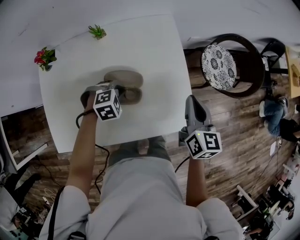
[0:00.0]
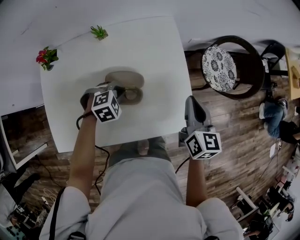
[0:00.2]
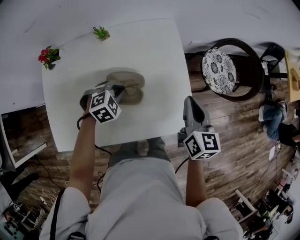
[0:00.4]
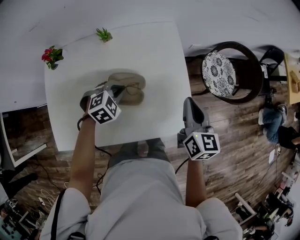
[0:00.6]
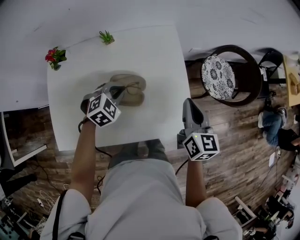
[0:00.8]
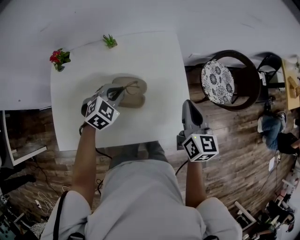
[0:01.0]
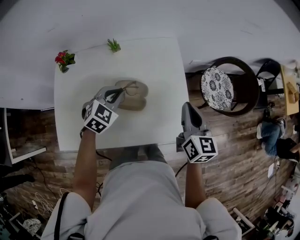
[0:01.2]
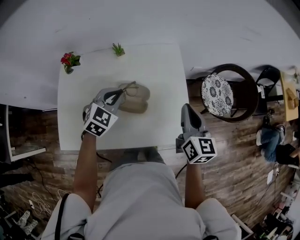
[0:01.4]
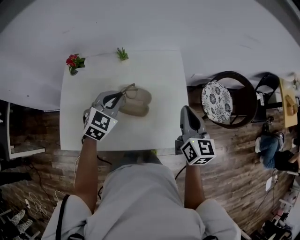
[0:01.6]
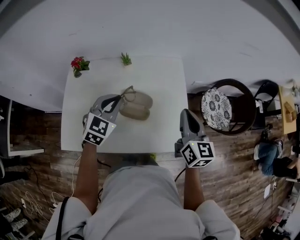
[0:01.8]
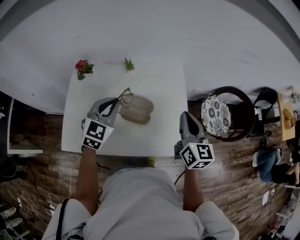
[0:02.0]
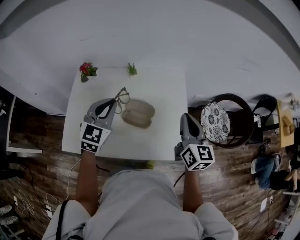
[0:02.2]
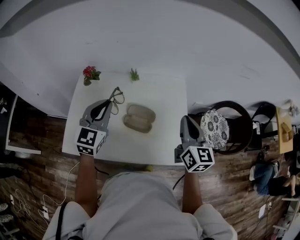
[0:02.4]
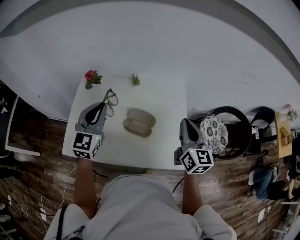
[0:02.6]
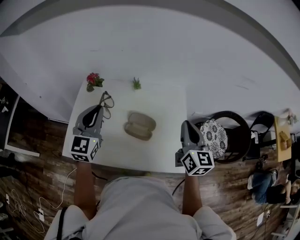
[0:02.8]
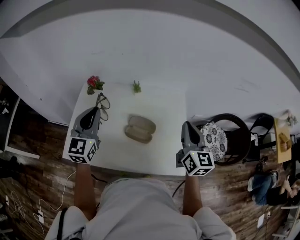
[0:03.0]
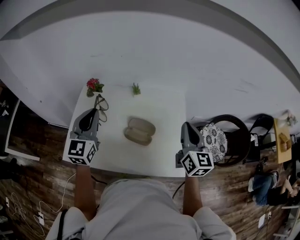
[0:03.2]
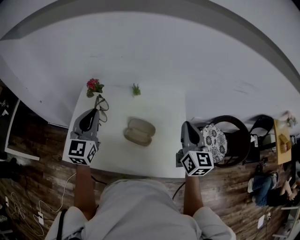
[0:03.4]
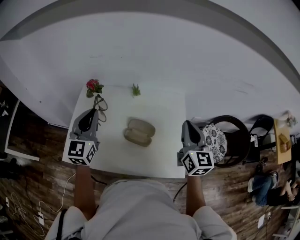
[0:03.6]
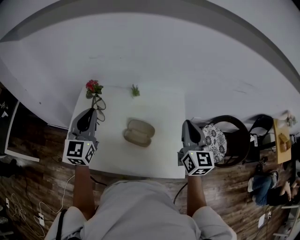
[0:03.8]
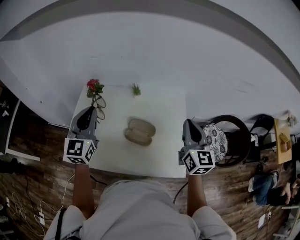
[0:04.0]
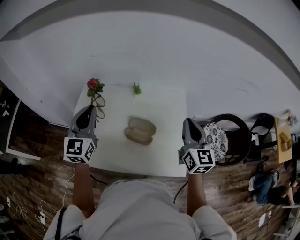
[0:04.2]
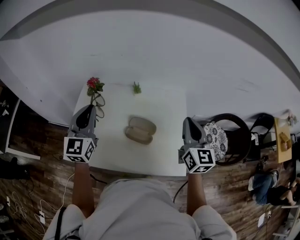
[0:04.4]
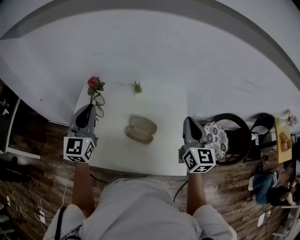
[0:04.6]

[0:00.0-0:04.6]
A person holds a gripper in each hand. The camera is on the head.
0:00.0 to 0:01.6: The right gripper heads upward, covering approximately 10 cm, while the left gripper moves upward, about 20 cm, and points its fingers roughly 40 degrees further upward.
0:01.6 to 0:03.0: The left gripper travels upward and to the left by about 20 cm, and turns by about 40 degrees, while the right gripper moves upward, some 10 cm.
0:03.0 to 0:04.6: The grippers move only a little.

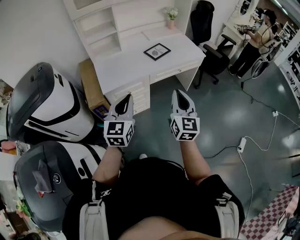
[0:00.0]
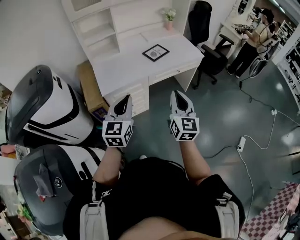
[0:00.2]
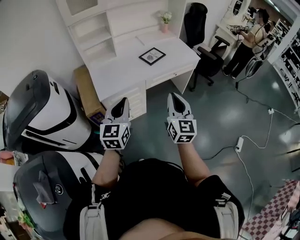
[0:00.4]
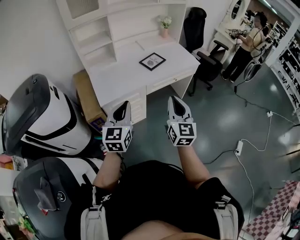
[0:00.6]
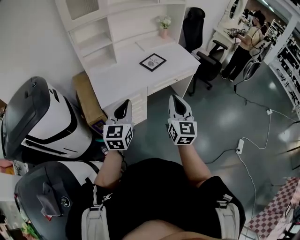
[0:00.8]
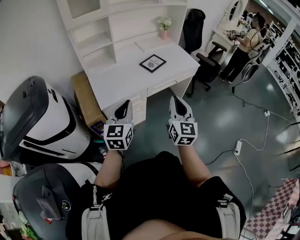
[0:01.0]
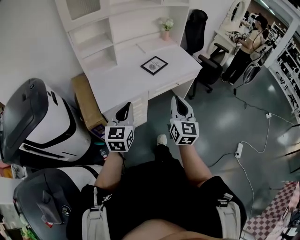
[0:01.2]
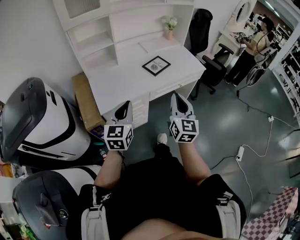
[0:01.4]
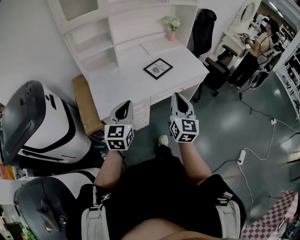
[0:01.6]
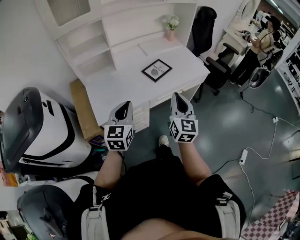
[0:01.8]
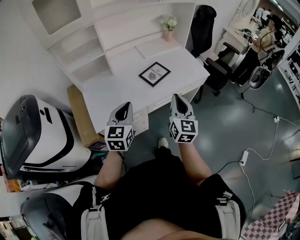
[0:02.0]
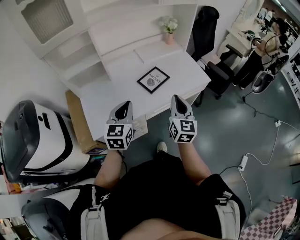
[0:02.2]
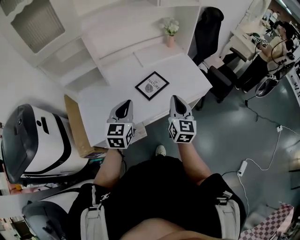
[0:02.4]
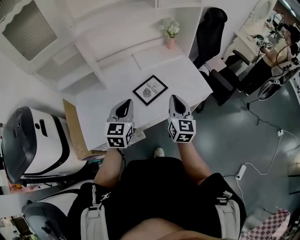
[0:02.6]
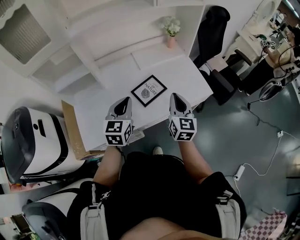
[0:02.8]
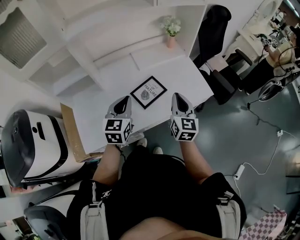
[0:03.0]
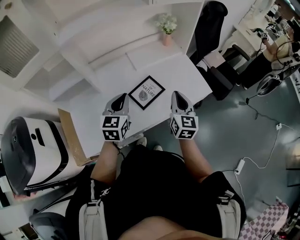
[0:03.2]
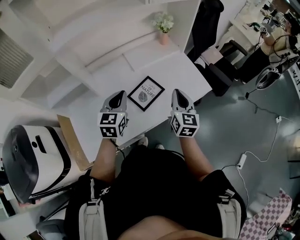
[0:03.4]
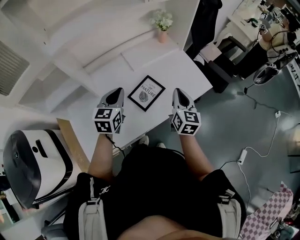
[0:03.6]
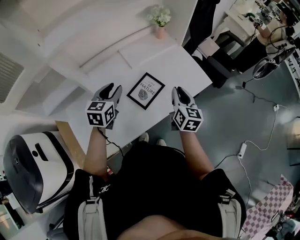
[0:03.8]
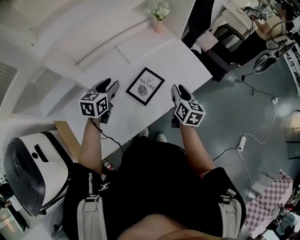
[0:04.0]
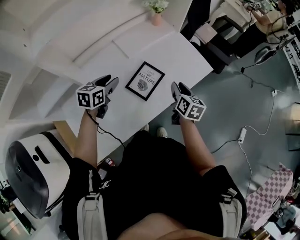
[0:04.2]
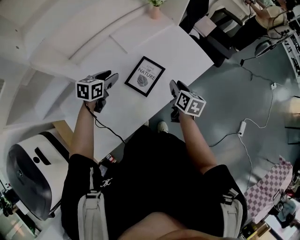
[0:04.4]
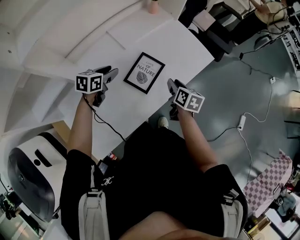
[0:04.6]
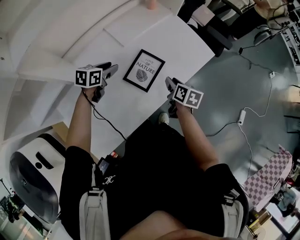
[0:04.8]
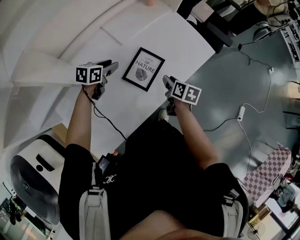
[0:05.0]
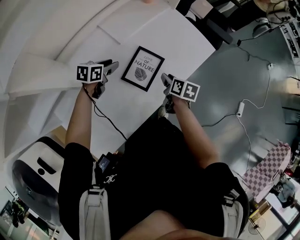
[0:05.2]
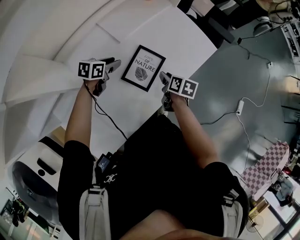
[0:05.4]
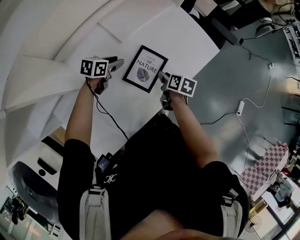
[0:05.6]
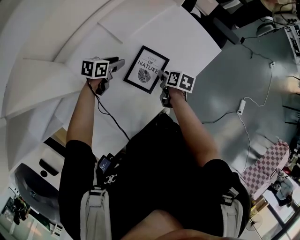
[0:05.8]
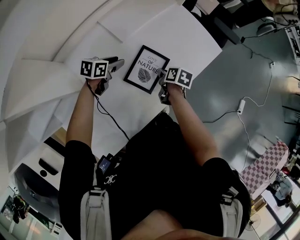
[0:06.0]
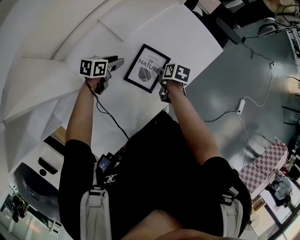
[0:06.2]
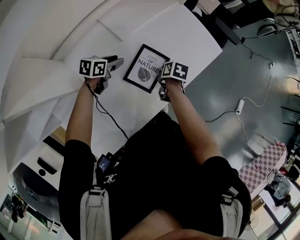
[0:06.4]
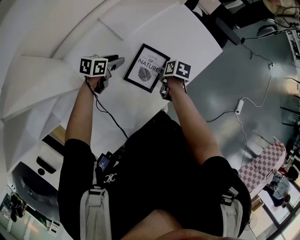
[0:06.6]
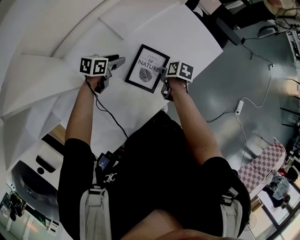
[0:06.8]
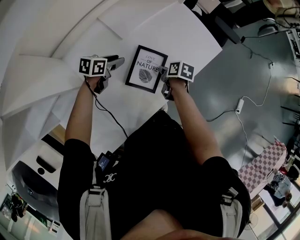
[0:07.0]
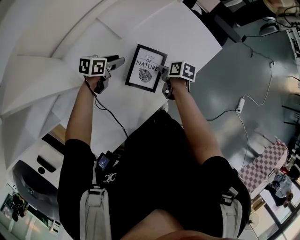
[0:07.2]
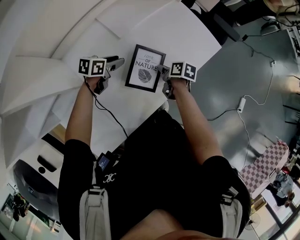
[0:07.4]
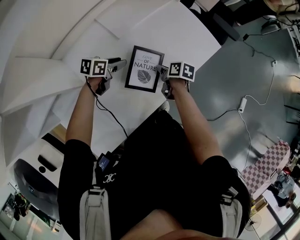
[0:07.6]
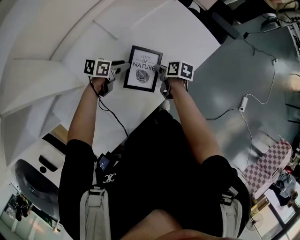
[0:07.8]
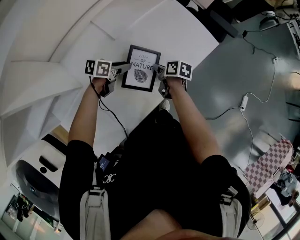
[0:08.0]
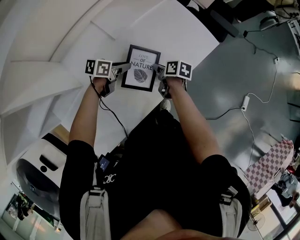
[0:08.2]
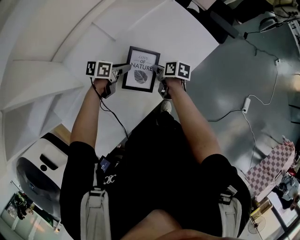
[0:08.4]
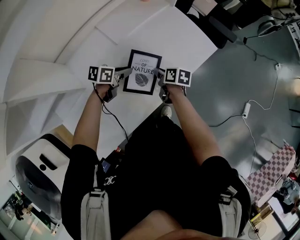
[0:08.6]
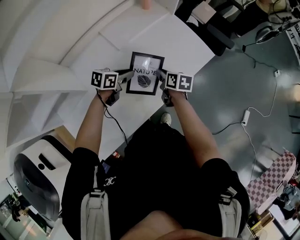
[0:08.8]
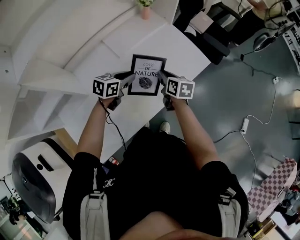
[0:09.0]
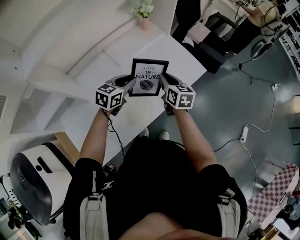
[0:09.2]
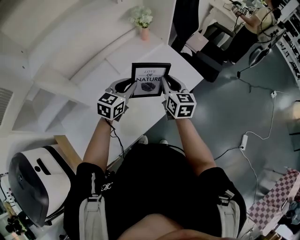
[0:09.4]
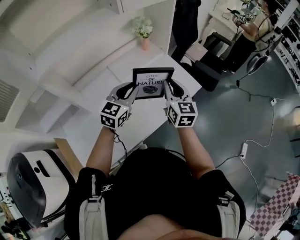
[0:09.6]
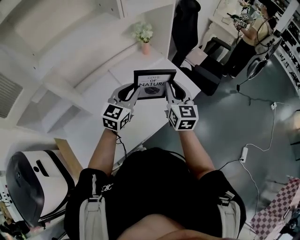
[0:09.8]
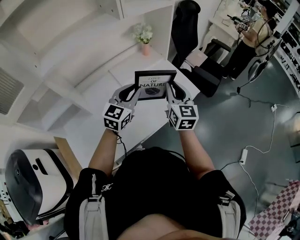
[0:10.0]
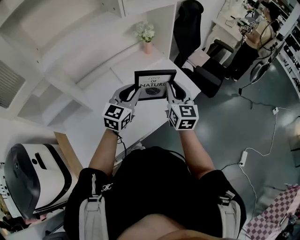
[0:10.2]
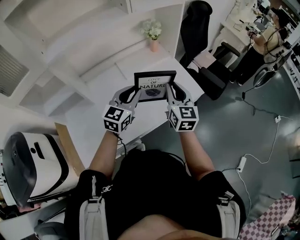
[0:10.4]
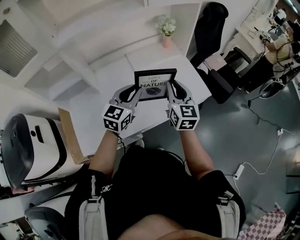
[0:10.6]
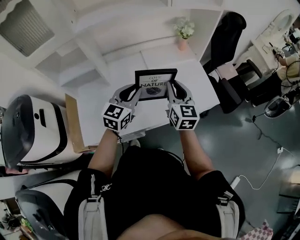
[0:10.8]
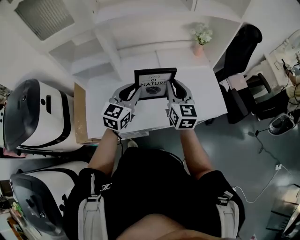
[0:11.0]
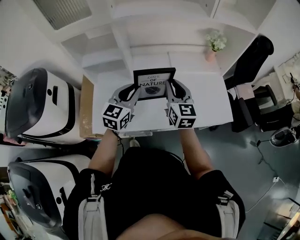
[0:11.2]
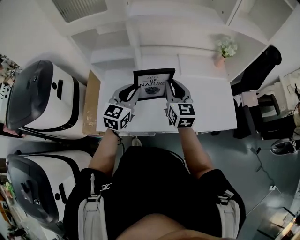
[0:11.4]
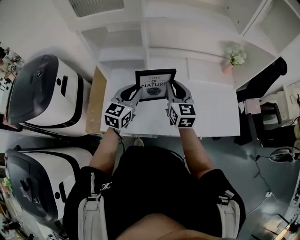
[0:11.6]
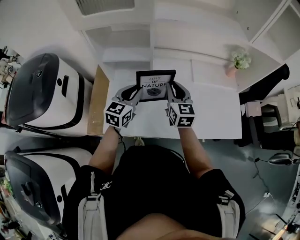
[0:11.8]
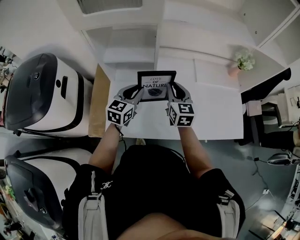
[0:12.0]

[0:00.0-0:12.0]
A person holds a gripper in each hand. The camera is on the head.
0:00.0 to 0:01.6: Both grippers travel together forward, approximately 15 cm.
0:01.6 to 0:03.0: The two grippers go about 35 cm forward.
0:03.0 to 0:04.4: The left gripper moves forward, downward and to the left, roughly 20 cm, rotates about 40 degrees, and opens its fingers. The right gripper shifts about 15 cm downward, rotates approximately 40 degrees, and opens its fingers.
0:04.4 to 0:06.0: The left gripper moves downward and forward, approximately 15 cm, and swivels roughly 20 degrees. Meanwhile the right gripper travels downward and to the left by approximately 15 cm, and changes its angle by roughly 30 degrees.
0:06.0 to 0:07.6: The grippers stay close to where they were, moving slightly.
0:07.6 to 0:09.0: The right gripper heads upward, covering about 10 cm, and changes its angle by roughly 30 degrees. The left gripper moves upward and to the right, approximately 10 cm, and closes its fingers.
0:09.0 to 0:10.4: The left gripper shifts roughly 20 cm upward and to the right, and swivels roughly 40 degrees. Meanwhile the right gripper shifts about 20 cm upward, and rotates some 40 degrees.
0:10.4 to 0:12.0: The left gripper ends up approximately 35 cm from where it was, and rotates some 30 degrees. Meanwhile the right gripper changes place by some 40 cm, and rotates roughly 30 degrees.

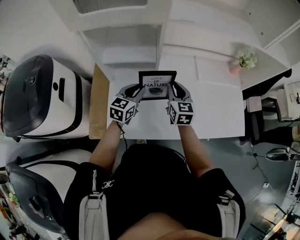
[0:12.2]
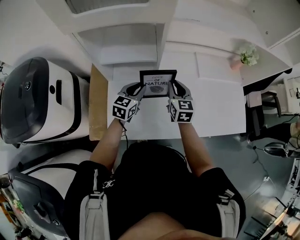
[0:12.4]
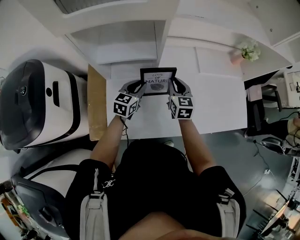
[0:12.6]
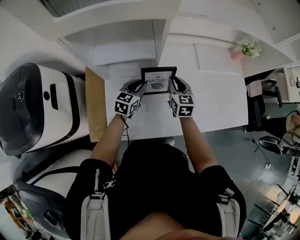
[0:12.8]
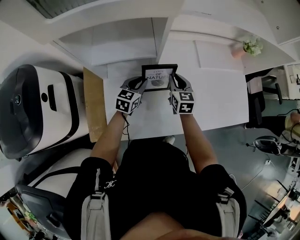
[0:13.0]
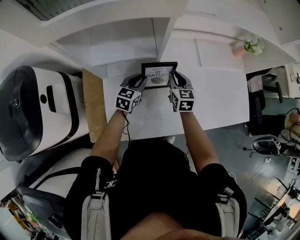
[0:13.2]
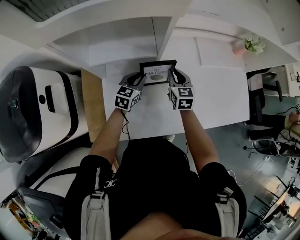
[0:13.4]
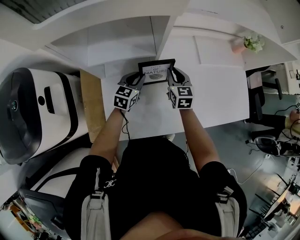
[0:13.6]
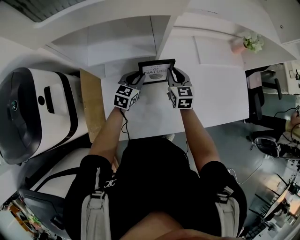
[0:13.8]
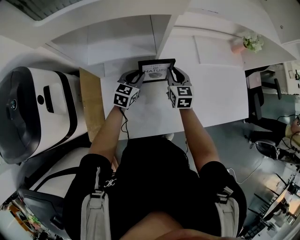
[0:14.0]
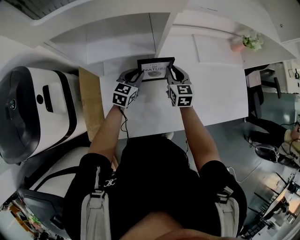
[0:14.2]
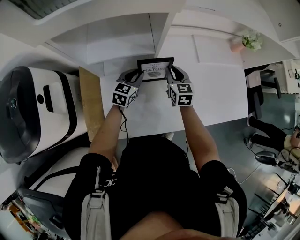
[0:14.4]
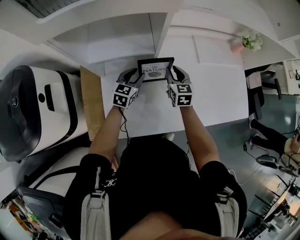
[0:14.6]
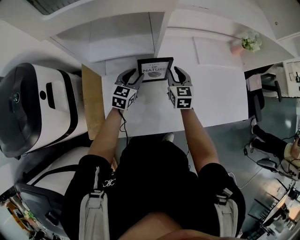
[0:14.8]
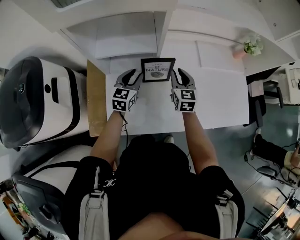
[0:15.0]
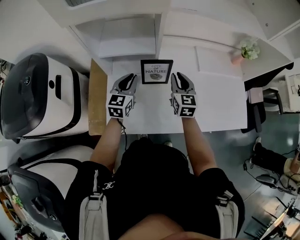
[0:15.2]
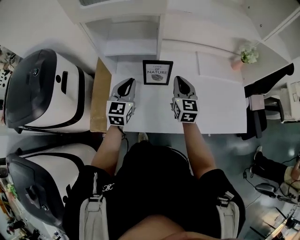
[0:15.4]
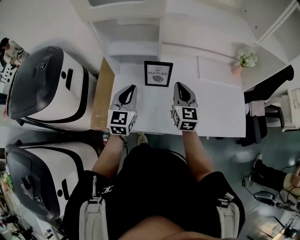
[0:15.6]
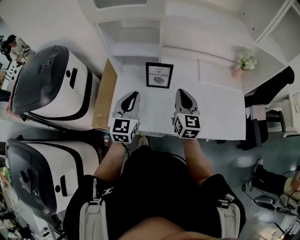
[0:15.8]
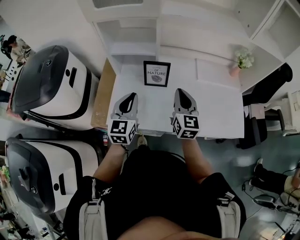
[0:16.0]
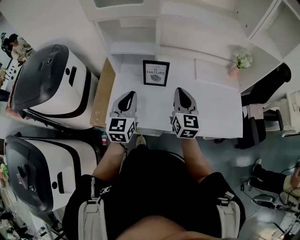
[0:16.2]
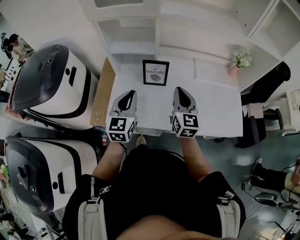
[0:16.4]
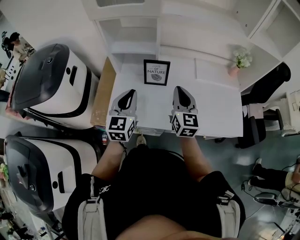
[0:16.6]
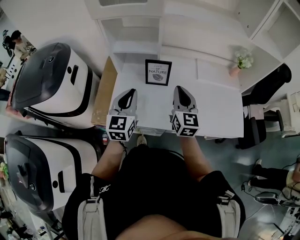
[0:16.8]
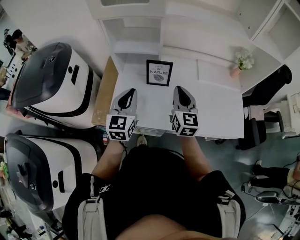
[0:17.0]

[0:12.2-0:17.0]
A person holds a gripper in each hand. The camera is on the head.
0:12.2 to 0:13.8: Both grippers travel together downward and forward, some 15 cm.
0:13.8 to 0:15.4: Both grippers travel together upward and backward, roughly 20 cm. The left gripper rotates approximately 30 degrees.
0:15.4 to 0:17.0: The grippers both shift backward and upward by roughly 15 cm.

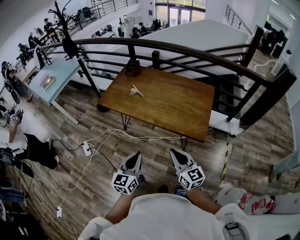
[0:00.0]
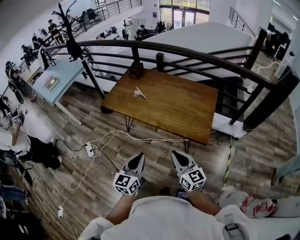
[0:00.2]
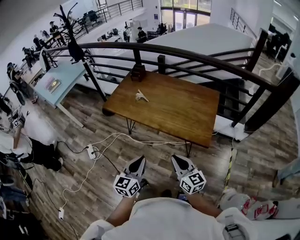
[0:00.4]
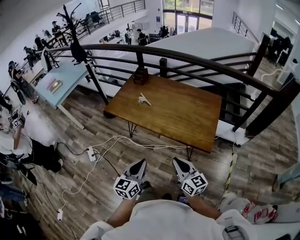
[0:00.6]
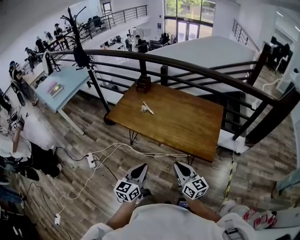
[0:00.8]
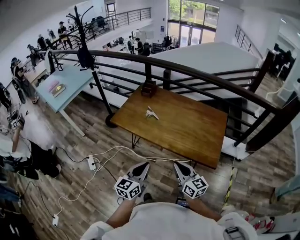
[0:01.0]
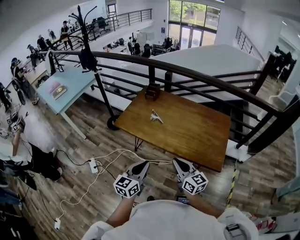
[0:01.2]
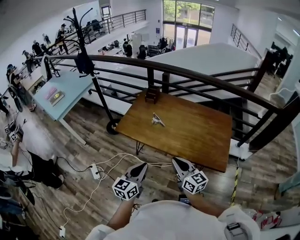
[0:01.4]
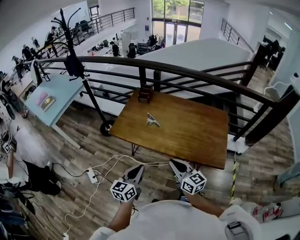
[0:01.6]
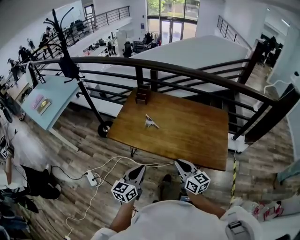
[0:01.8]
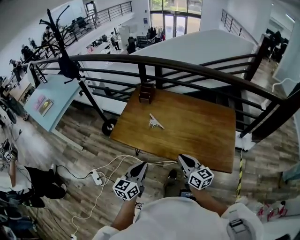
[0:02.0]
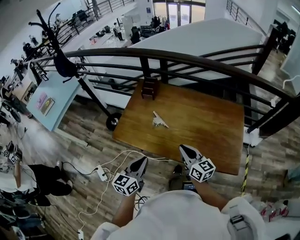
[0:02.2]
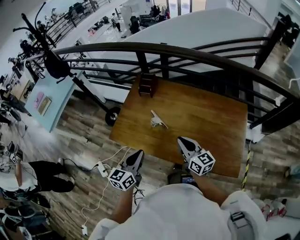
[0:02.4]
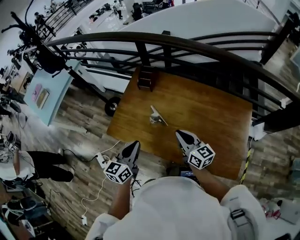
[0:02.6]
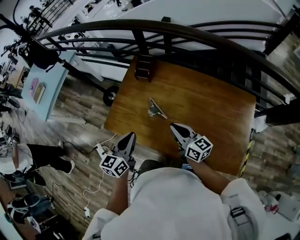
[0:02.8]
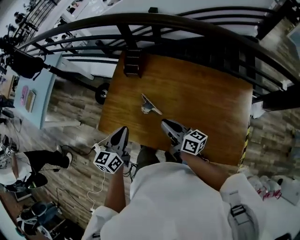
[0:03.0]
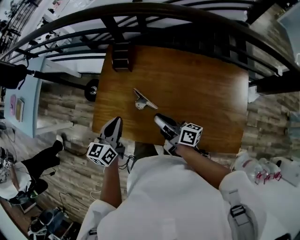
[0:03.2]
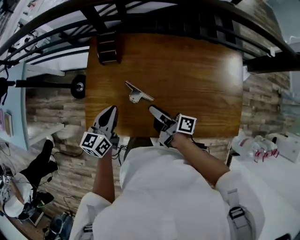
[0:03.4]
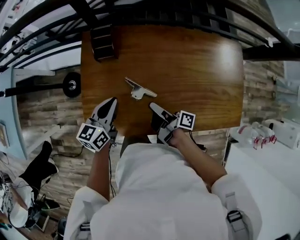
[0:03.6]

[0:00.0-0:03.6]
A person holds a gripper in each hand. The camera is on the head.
0:00.0 to 0:01.8: The two grippers go some 25 cm forward and to the left.
0:01.8 to 0:03.6: The left gripper travels forward by about 50 cm, and turns by about 20 degrees; the right gripper shifts about 40 cm forward and downward, rotates around the line of its fingers by about 80 degrees, clockwise from behind, and opens up.
